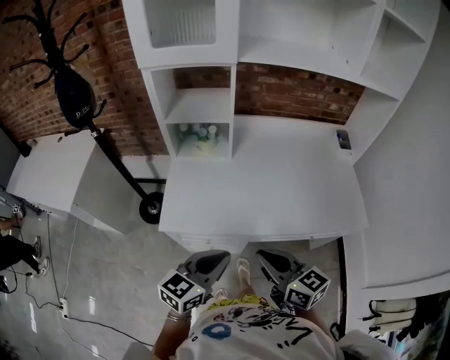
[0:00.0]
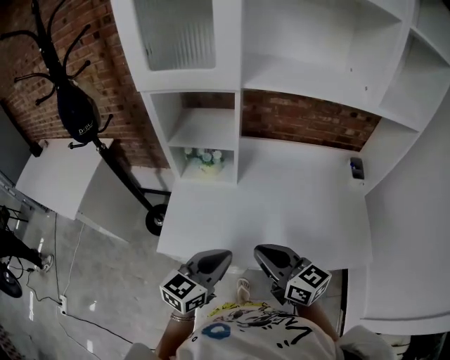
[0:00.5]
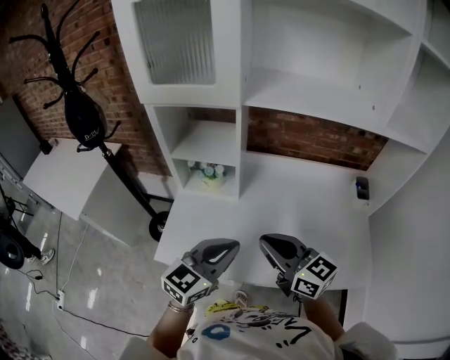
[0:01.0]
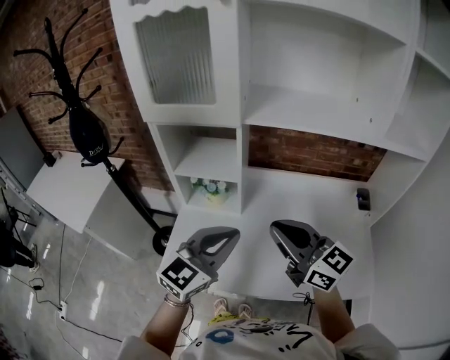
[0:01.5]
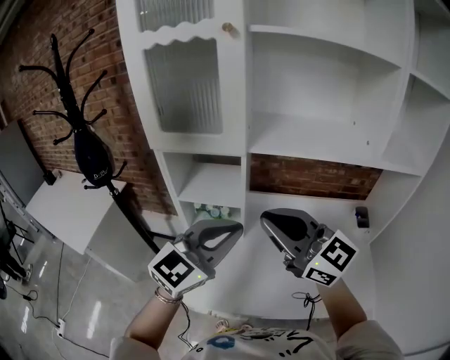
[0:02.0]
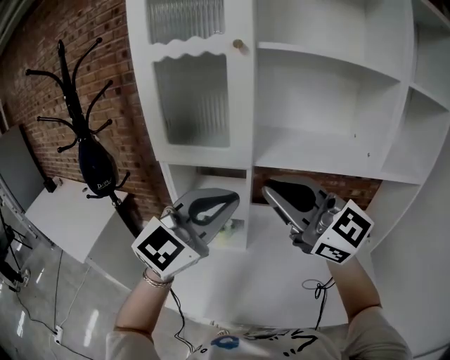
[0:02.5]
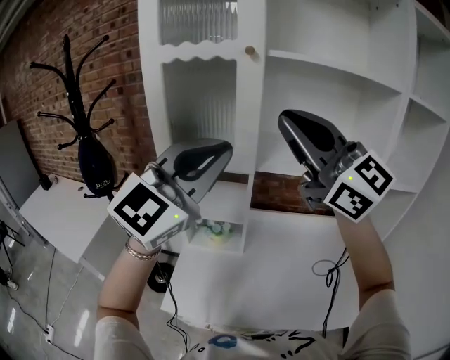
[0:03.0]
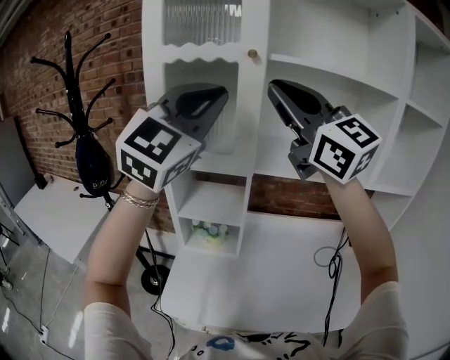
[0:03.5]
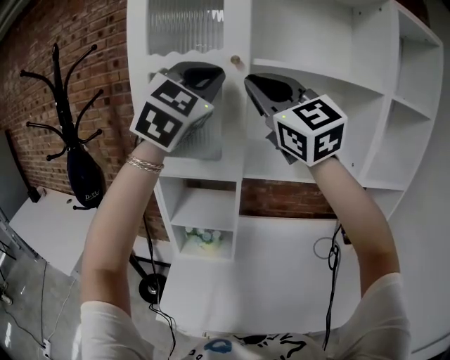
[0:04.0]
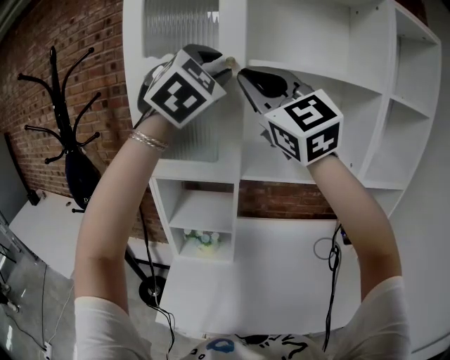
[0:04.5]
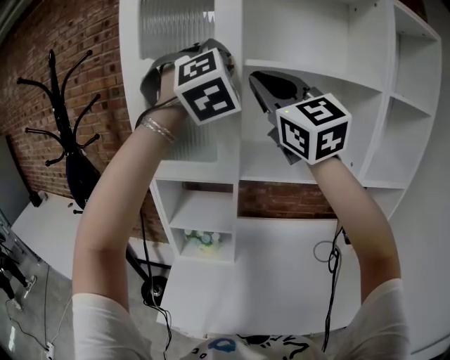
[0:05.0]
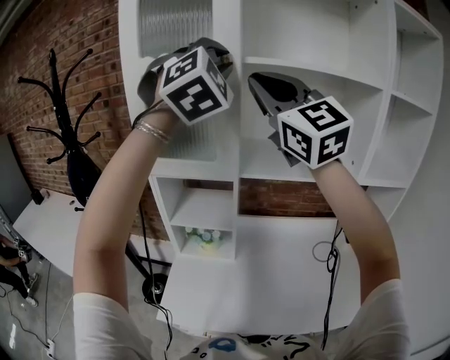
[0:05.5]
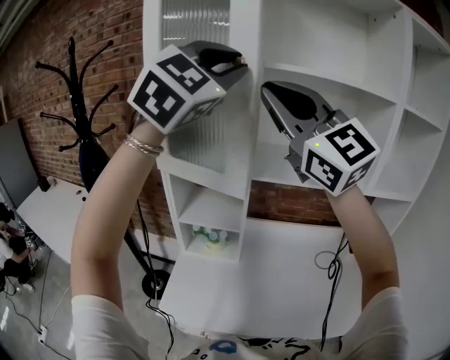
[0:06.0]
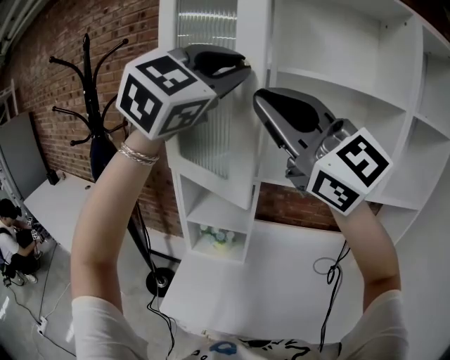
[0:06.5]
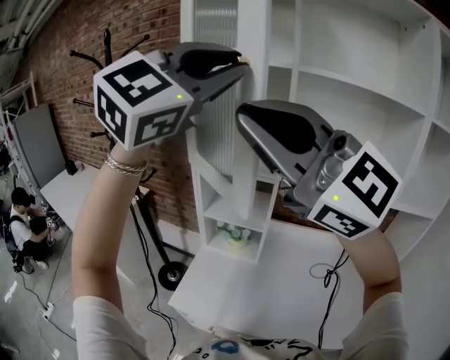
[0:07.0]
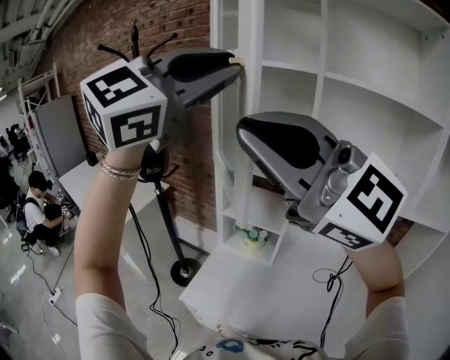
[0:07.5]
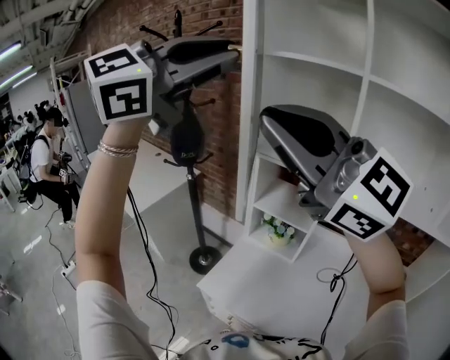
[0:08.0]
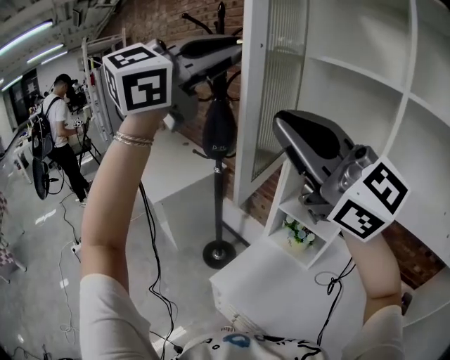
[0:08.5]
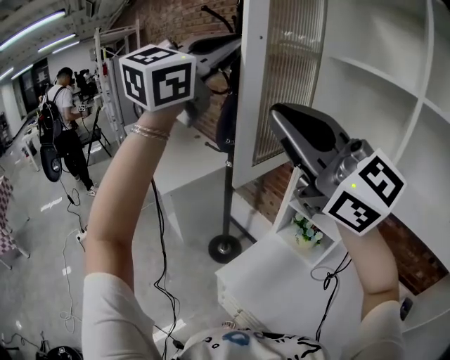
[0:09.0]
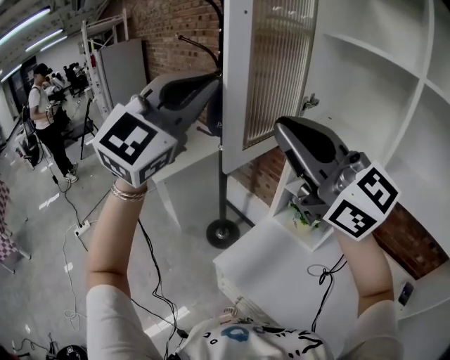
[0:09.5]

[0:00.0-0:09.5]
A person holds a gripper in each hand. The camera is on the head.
0:00.0 to 0:02.0: The left gripper heads forward and upward, covering approximately 35 cm, and rotates some 40 degrees; the right gripper moves upward and forward, roughly 35 cm, and changes its angle by roughly 40 degrees.
0:02.0 to 0:04.0: The grippers both shift upward and forward by about 35 cm. The left gripper turns by some 40 degrees. Meanwhile the right gripper changes its angle by some 40 degrees.
0:04.0 to 0:05.5: The left gripper changes place by some 5 cm, and swivels some 30 degrees.
0:05.5 to 0:07.5: Both grippers move to the left and backward, approximately 25 cm. The left gripper swivels roughly 40 degrees; the right gripper rotates some 40 degrees.
0:07.5 to 0:09.5: The left gripper heads to the left and downward, covering about 25 cm, and turns by roughly 30 degrees, while the right gripper moves to the left, downward and forward, about 15 cm, and turns by roughly 30 degrees.

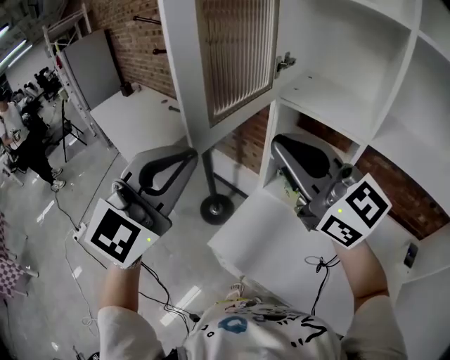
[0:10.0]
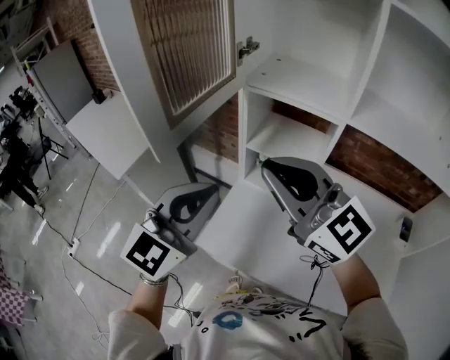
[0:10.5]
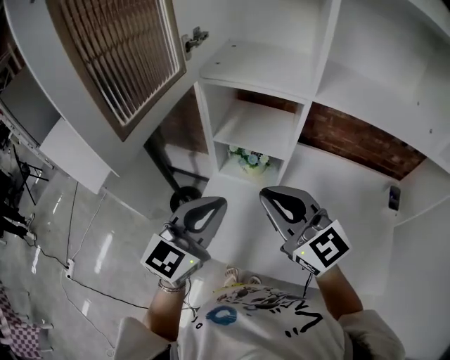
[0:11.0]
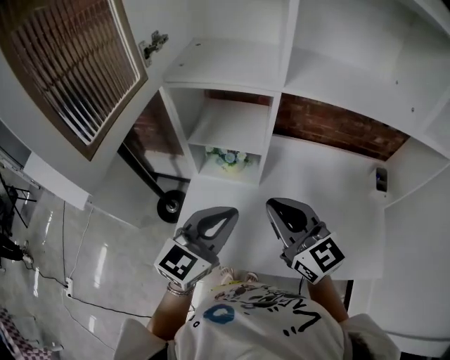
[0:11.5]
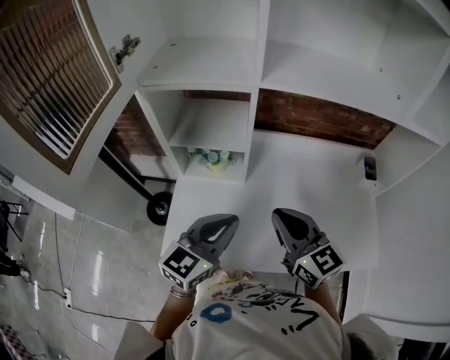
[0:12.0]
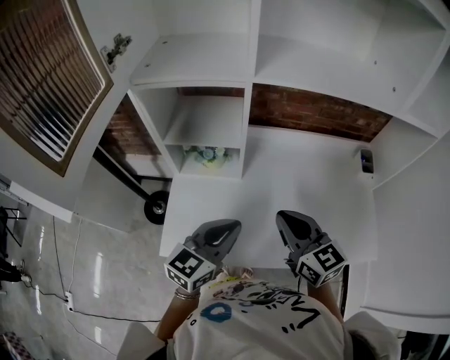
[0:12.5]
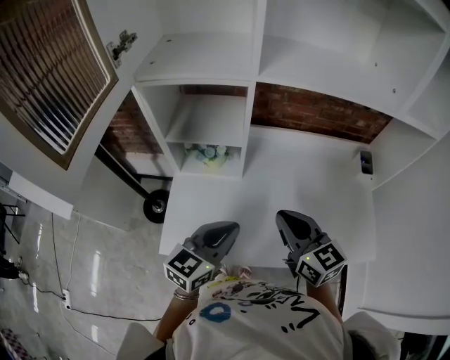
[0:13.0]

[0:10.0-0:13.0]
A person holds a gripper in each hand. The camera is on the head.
0:10.0 to 0:11.5: The right gripper heads downward, covering approximately 20 cm, and turns by roughly 40 degrees. The left gripper changes place by approximately 30 cm, and swivels roughly 40 degrees.
0:11.5 to 0:13.0: The left gripper shifts roughly 10 cm downward; the right gripper is displaced to the right and downward by roughly 10 cm.

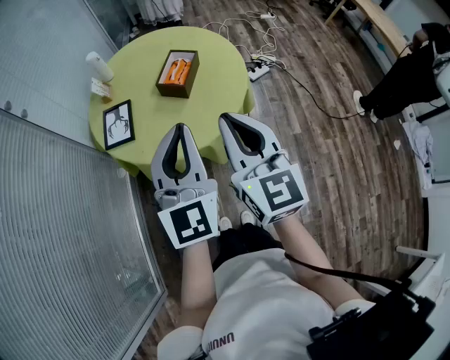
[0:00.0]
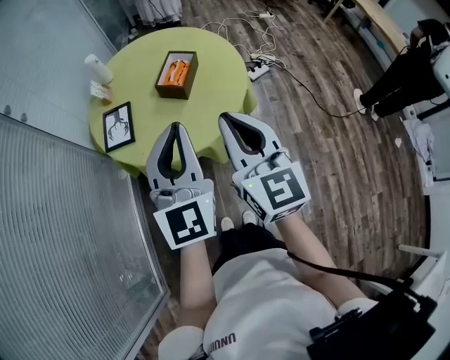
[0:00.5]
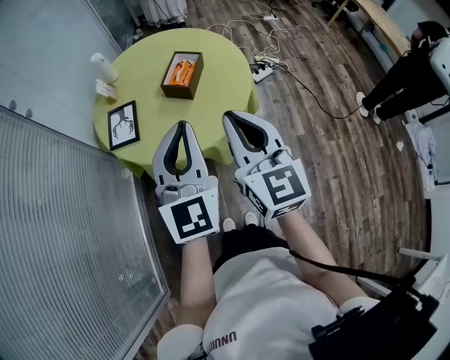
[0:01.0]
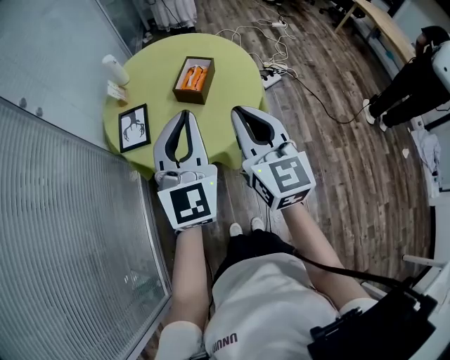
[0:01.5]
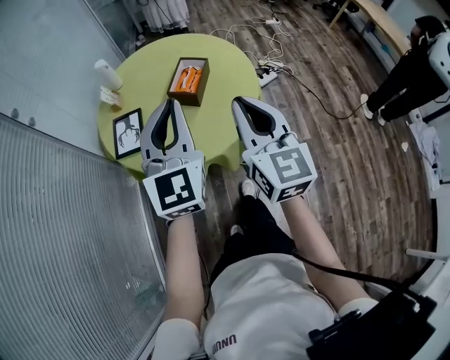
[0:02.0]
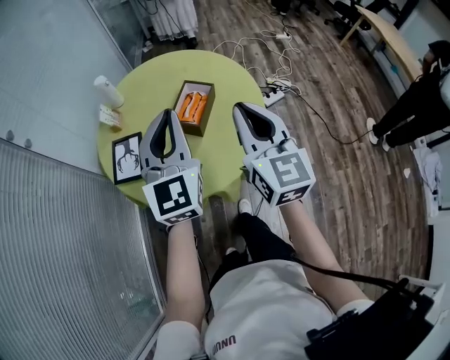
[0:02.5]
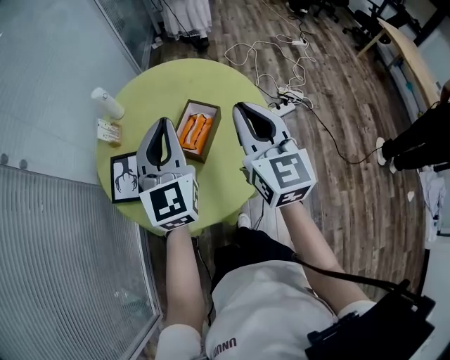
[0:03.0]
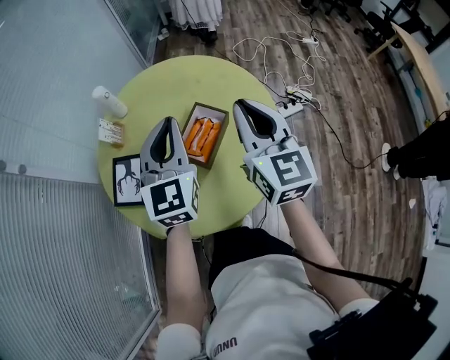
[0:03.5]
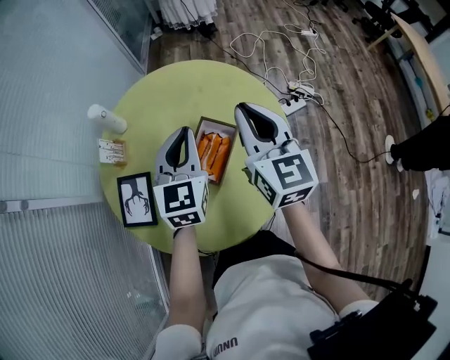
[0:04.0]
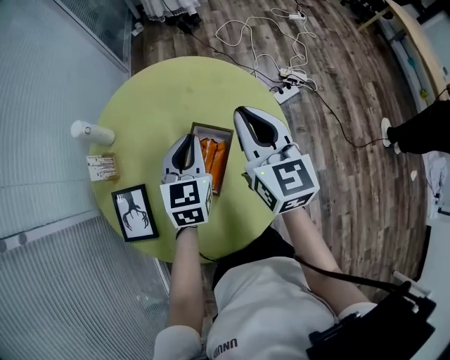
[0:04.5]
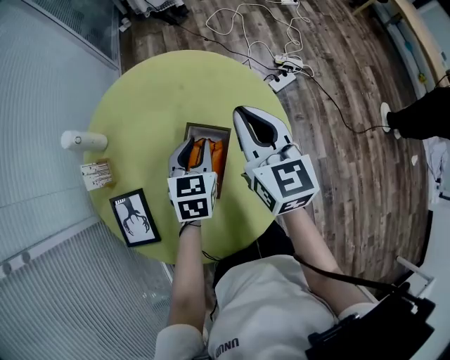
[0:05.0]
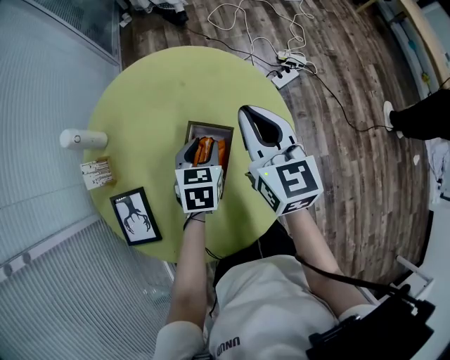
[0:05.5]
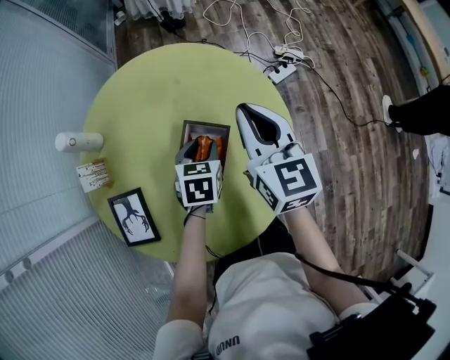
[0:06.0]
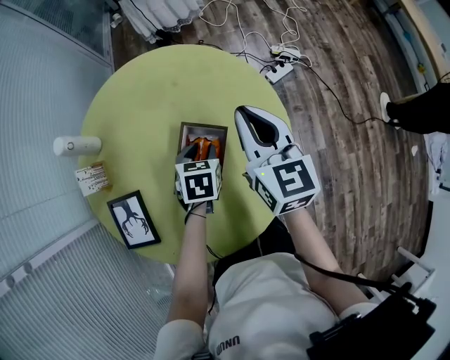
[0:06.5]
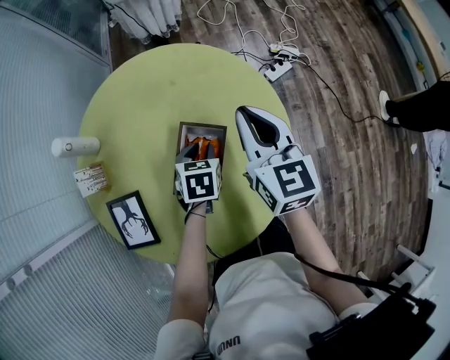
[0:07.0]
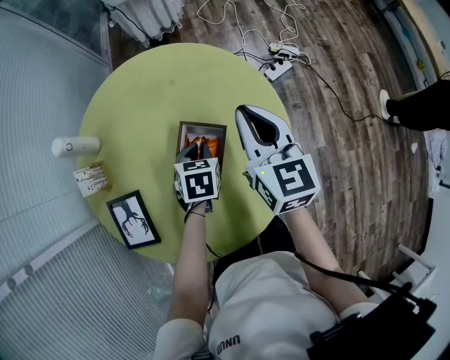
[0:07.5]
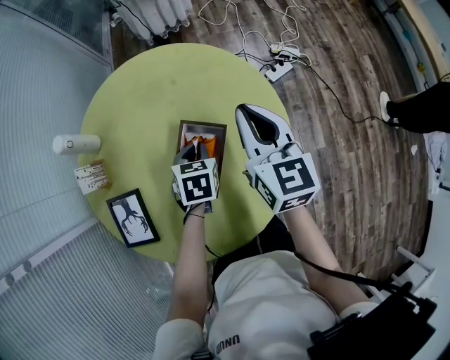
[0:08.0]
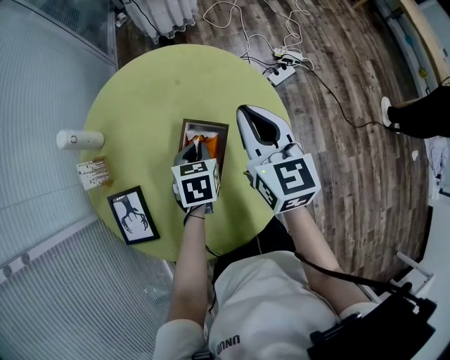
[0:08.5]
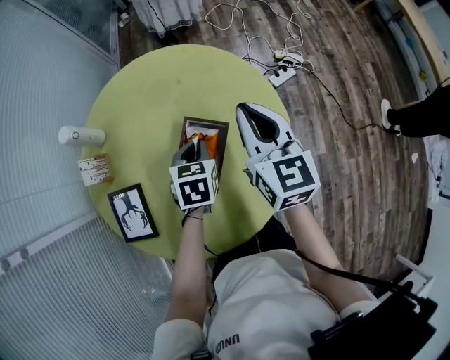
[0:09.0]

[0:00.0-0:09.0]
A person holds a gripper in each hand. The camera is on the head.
0:00.0 to 0:02.0: The grippers both shift forward by roughly 5 cm.
0:02.0 to 0:04.5: The left gripper heads forward and downward, covering some 40 cm, and tilts its fingers about 30 degrees downward; the right gripper moves forward, some 35 cm.
0:04.5 to 0:07.0: The left gripper moves downward, about 15 cm, tips its fingers downward by about 30 degrees, and opens. Meanwhile the right gripper goes approximately 5 cm downward.
0:07.0 to 0:09.0: The left gripper ends up roughly 5 cm from where it was, and closes its fingers.

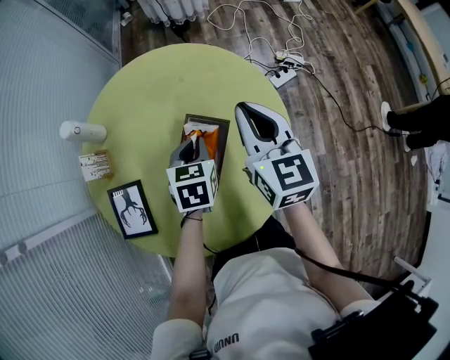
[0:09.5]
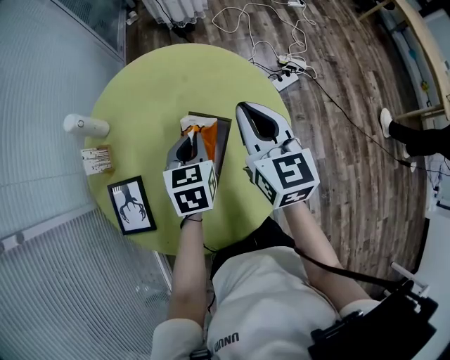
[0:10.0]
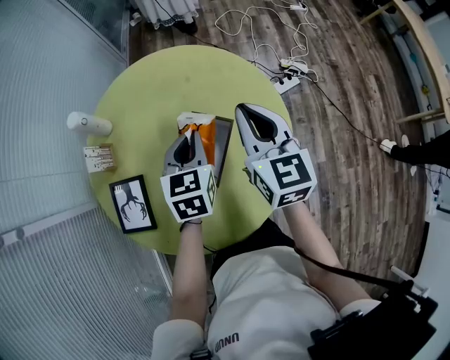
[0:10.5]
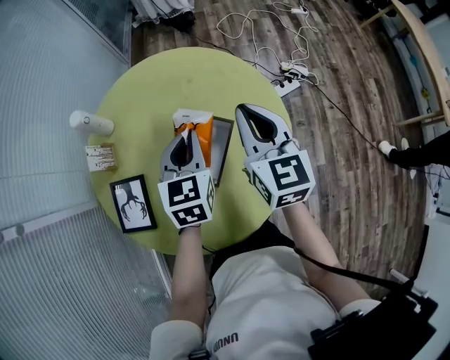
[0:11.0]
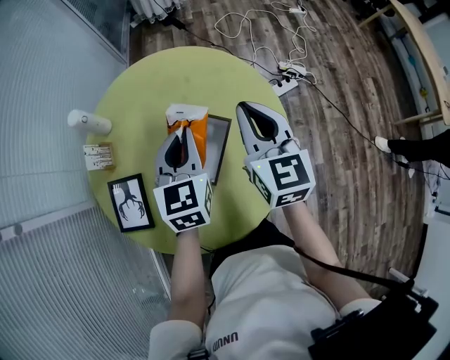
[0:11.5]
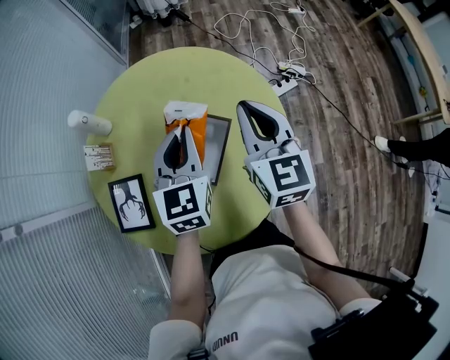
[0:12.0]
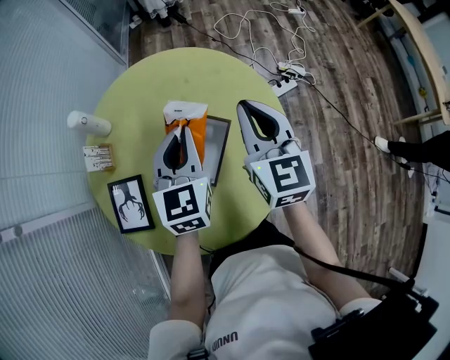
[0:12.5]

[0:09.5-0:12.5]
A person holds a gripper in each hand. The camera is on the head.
0:09.5 to 0:11.0: The left gripper shifts about 10 cm upward.
0:11.0 to 0:12.5: The grippers move only a little.

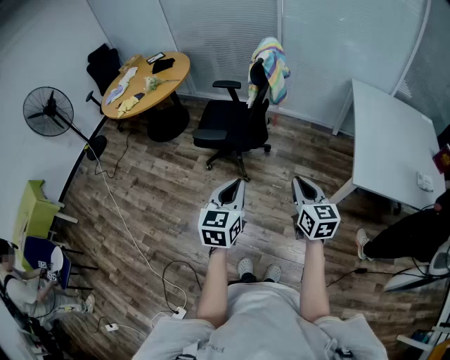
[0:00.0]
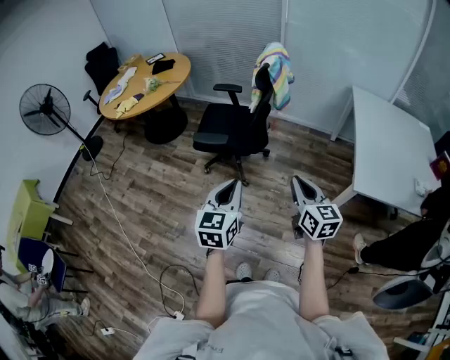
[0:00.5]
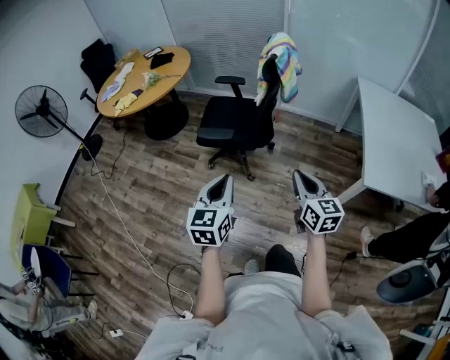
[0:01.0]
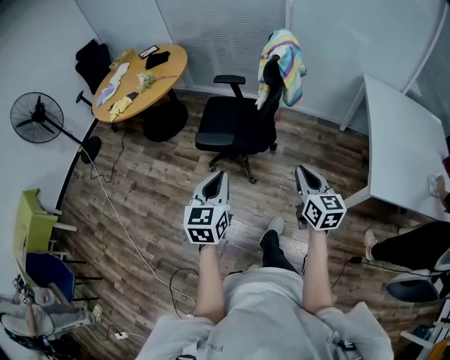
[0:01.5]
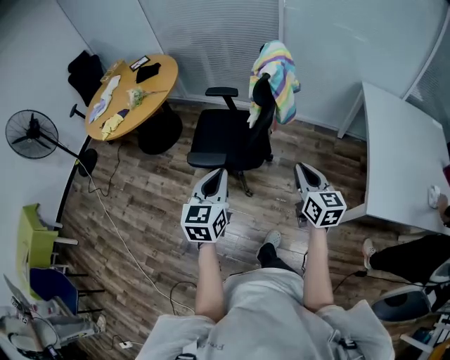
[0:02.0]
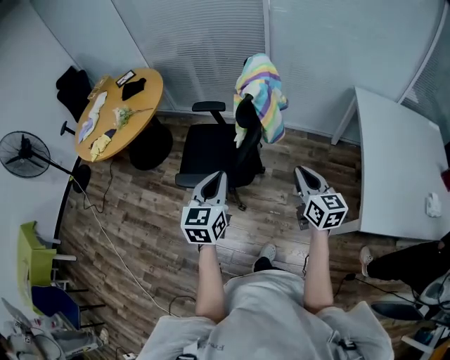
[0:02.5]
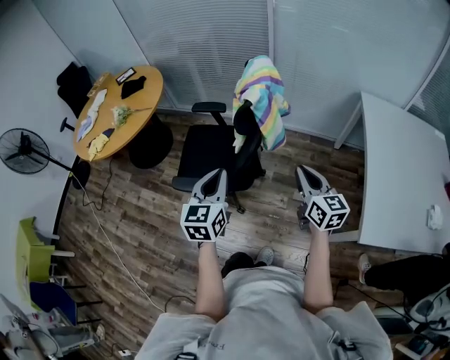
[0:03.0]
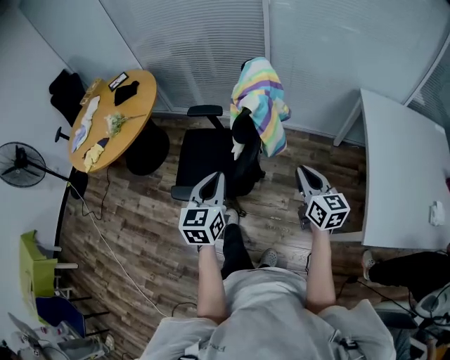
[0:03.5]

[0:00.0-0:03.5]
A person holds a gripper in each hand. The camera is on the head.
0:00.0 to 0:02.0: Both grippers move forward, roughly 25 cm.
0:02.0 to 0:03.5: The right gripper goes approximately 20 cm forward and to the right. The left gripper shifts approximately 20 cm forward.
